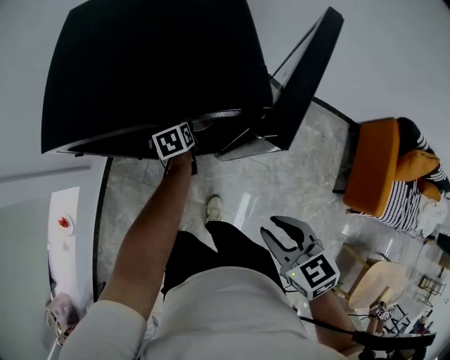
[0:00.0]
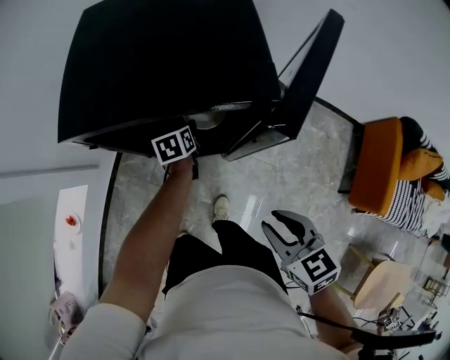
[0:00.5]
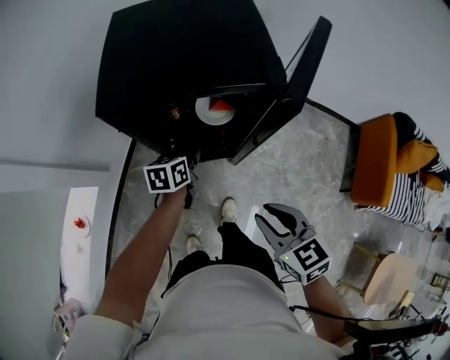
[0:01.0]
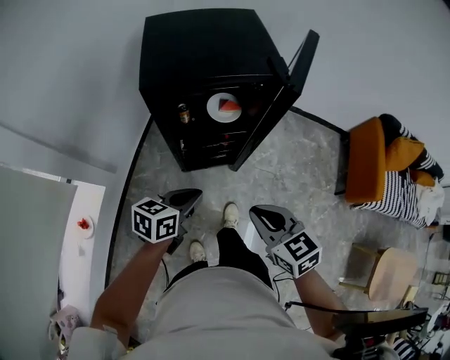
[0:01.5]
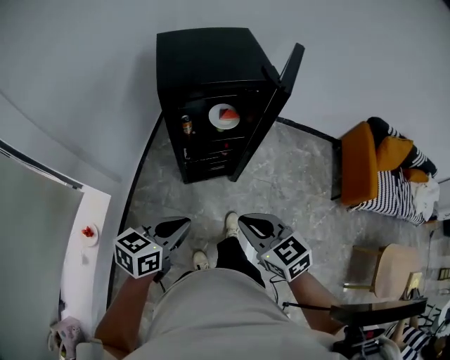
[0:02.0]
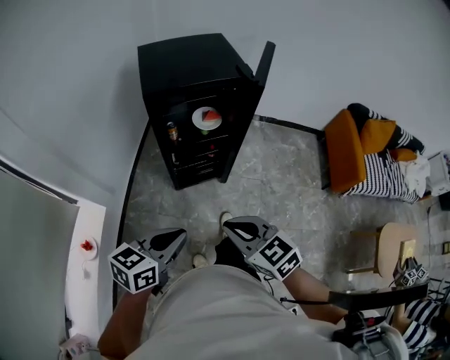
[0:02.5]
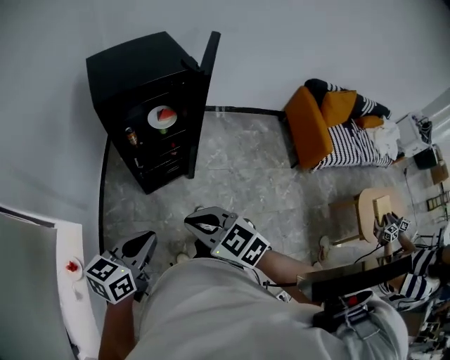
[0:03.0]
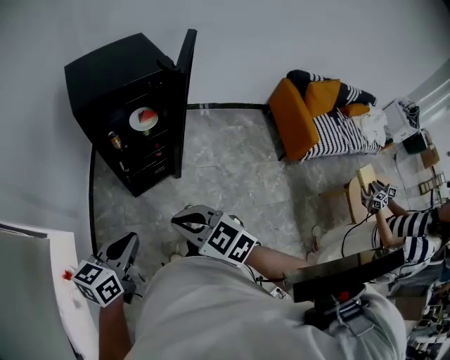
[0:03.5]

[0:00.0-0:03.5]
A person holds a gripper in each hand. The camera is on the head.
0:00.0 to 0:02.0: The right gripper moves about 30 cm, and closes, while the left gripper shifts by about 60 cm, changes its angle by about 50 degrees, and closes its fingers.
0:02.0 to 0:03.5: Both grippers travel together backward, approximately 5 cm.

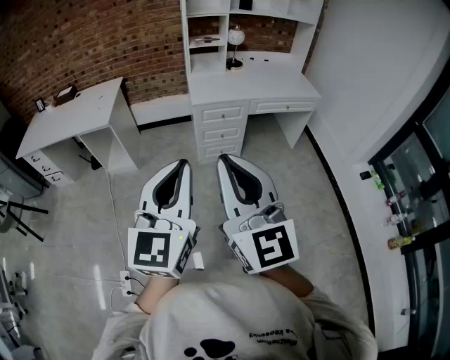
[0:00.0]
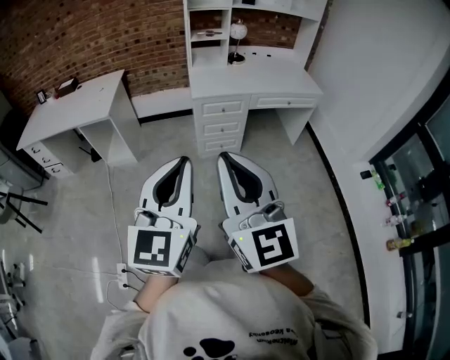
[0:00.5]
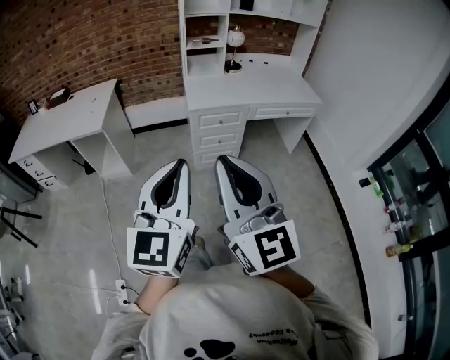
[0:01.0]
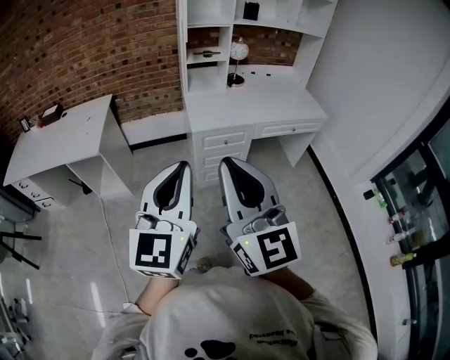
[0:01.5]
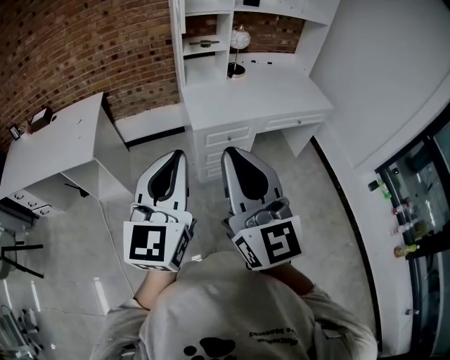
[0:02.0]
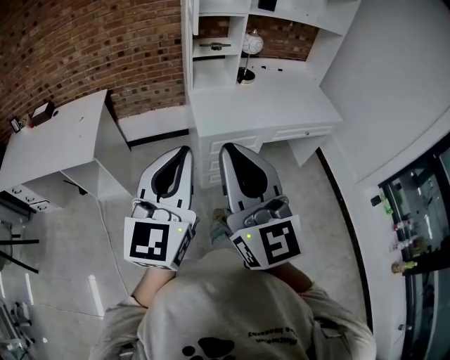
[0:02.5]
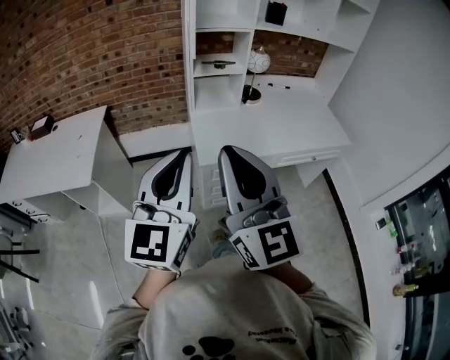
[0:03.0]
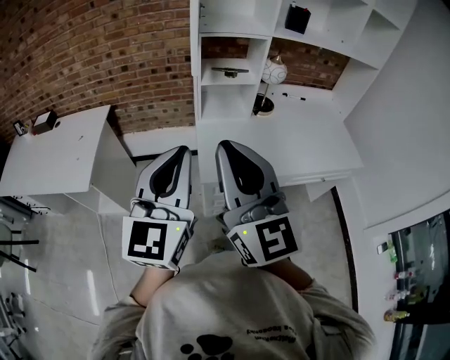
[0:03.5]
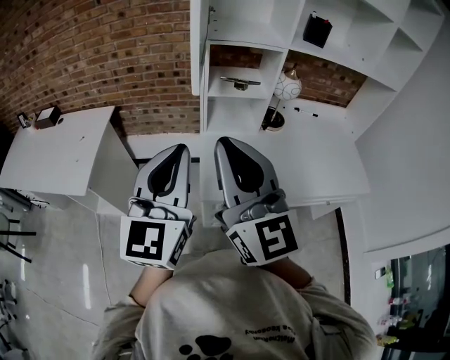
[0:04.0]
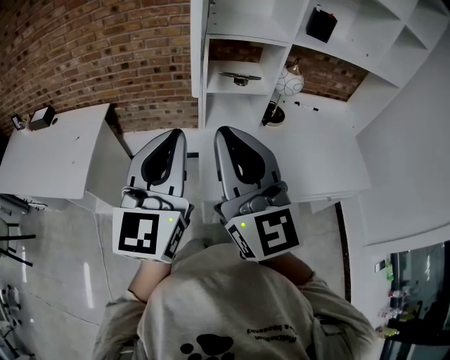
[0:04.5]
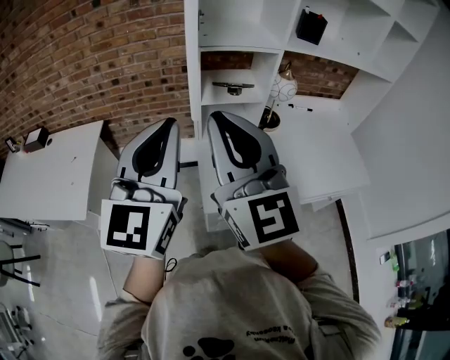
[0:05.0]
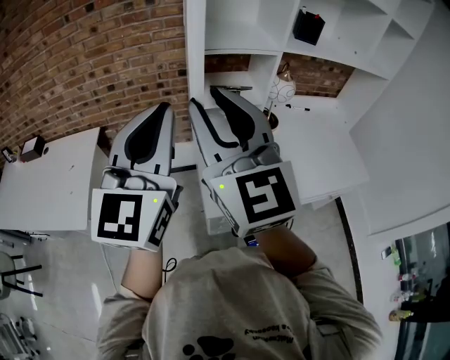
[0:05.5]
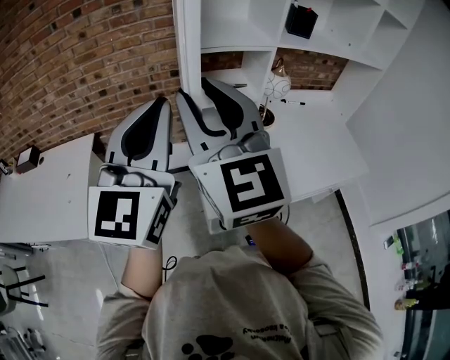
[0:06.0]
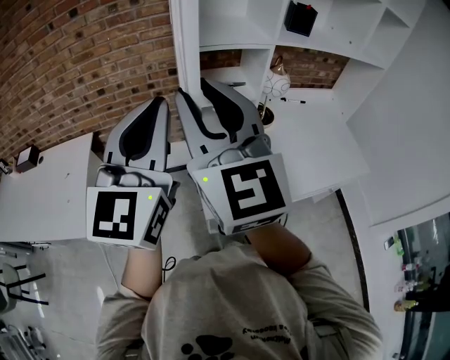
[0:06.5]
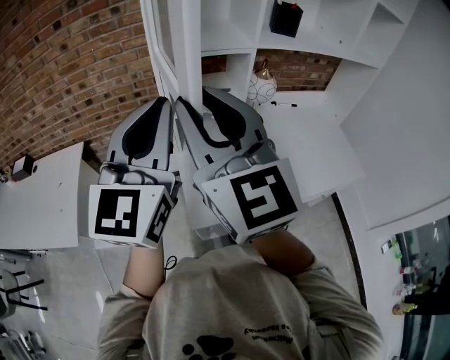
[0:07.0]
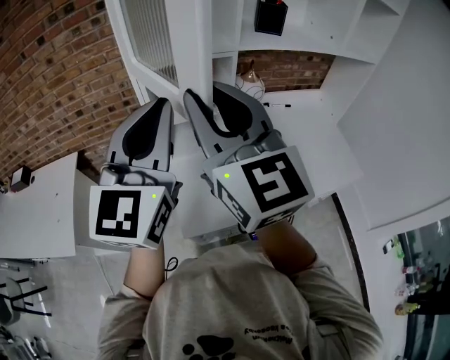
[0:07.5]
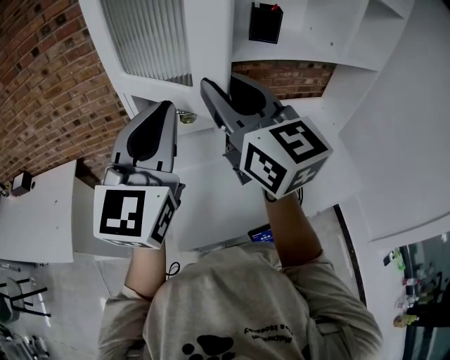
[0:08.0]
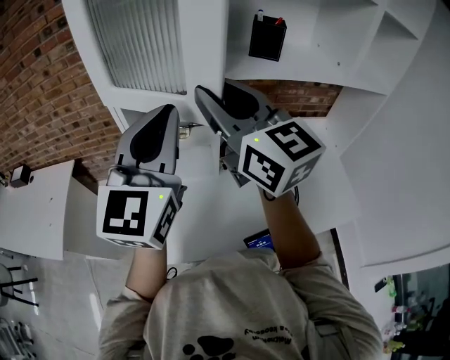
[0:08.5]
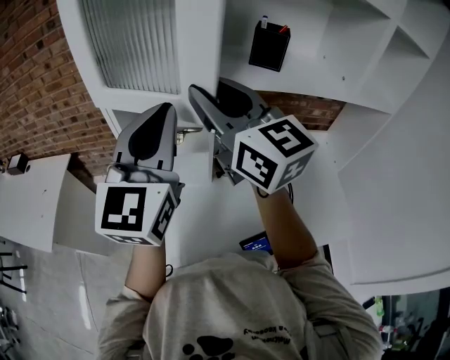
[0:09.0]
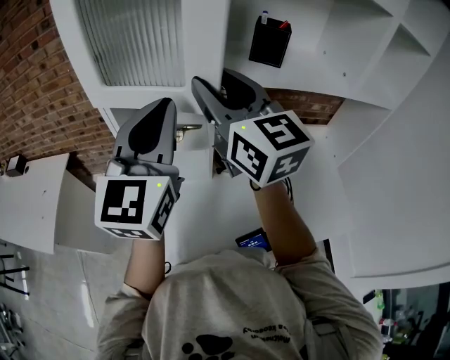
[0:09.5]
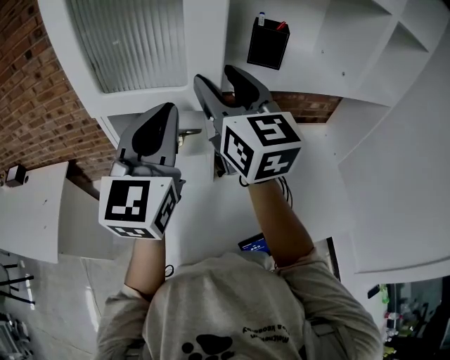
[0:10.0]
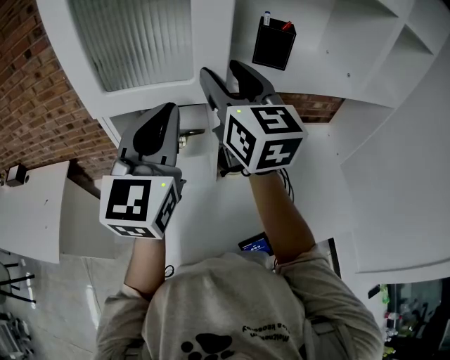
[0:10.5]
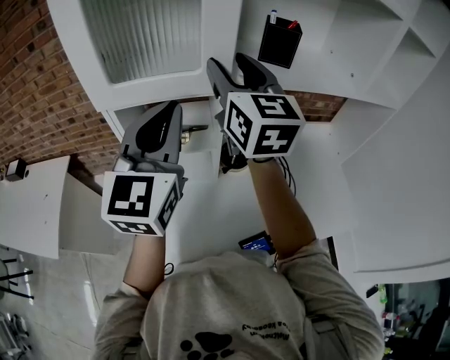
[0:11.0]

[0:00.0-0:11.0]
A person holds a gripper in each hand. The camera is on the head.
0:00.0 to 0:02.0: Both grippers travel together forward, roughly 35 cm.
0:02.0 to 0:03.5: The two grippers go about 30 cm forward.
0:03.5 to 0:05.5: The right gripper is displaced forward by roughly 20 cm, and opens its fingers. The left gripper travels forward and upward by about 20 cm.
0:05.5 to 0:07.5: Both grippers move to the right and forward, roughly 15 cm.
0:07.5 to 0:09.0: The left gripper is displaced to the right and forward by roughly 15 cm, while the right gripper travels forward and to the right by approximately 20 cm, and swivels roughly 20 degrees.
0:09.0 to 0:11.0: The left gripper changes place by about 5 cm. The right gripper goes approximately 10 cm forward, turns by approximately 20 degrees, and opens up.

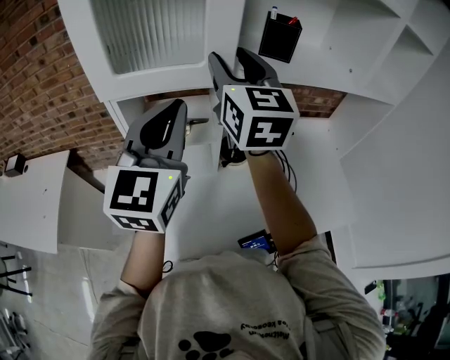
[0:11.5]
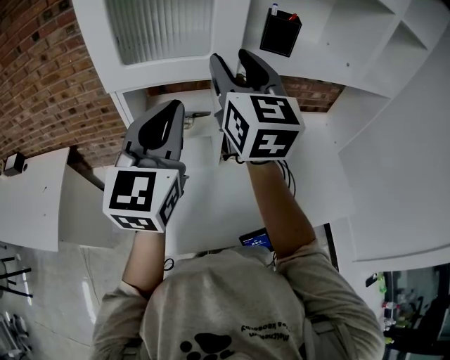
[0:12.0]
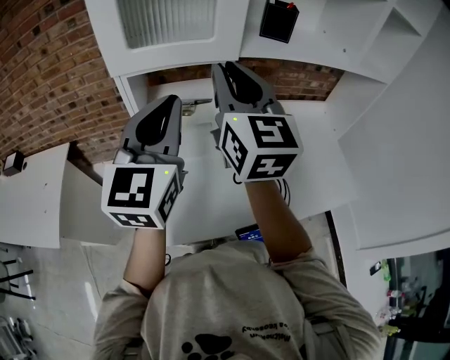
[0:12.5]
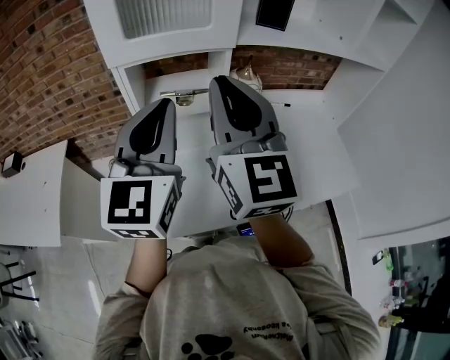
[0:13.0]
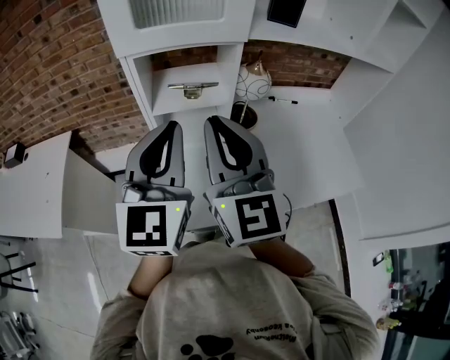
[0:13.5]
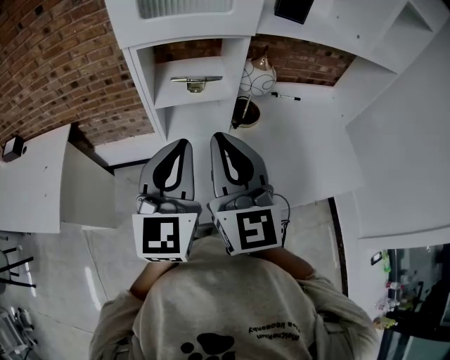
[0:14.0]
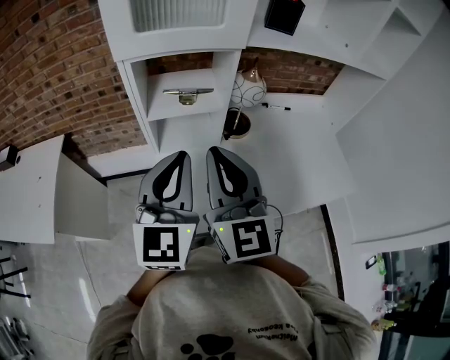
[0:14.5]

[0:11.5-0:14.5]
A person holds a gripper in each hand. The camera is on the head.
0:11.5 to 0:13.0: The right gripper goes about 20 cm backward, and closes. The left gripper travels backward by some 10 cm.
0:13.0 to 0:14.5: The right gripper is displaced downward and backward by about 10 cm. Meanwhile the left gripper shifts some 10 cm downward.

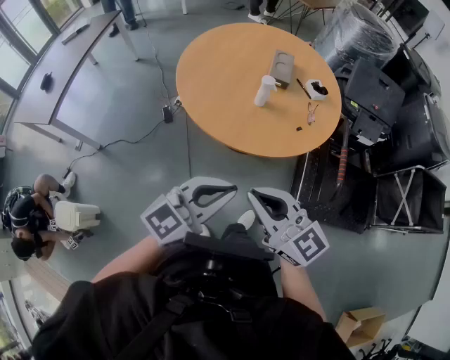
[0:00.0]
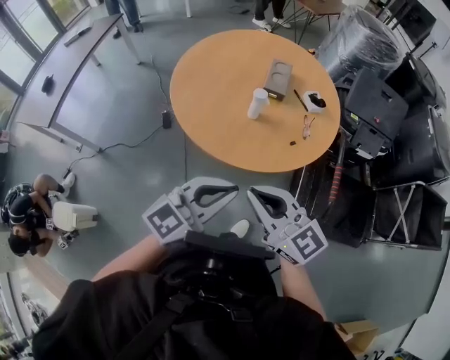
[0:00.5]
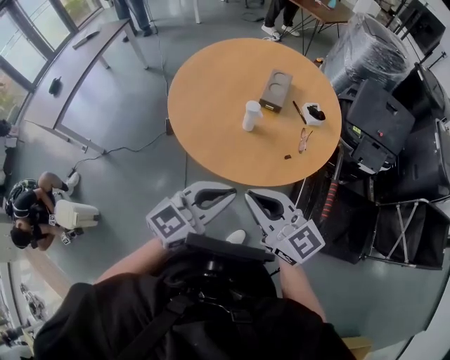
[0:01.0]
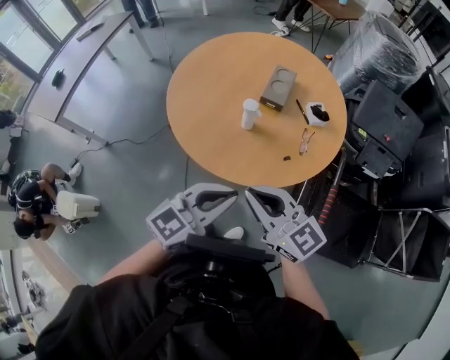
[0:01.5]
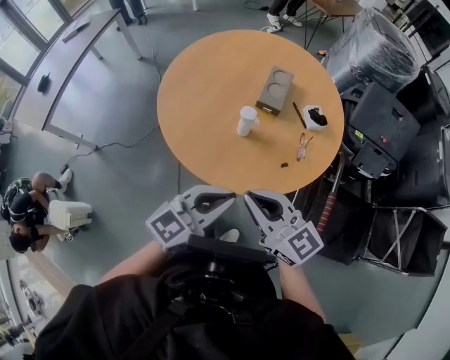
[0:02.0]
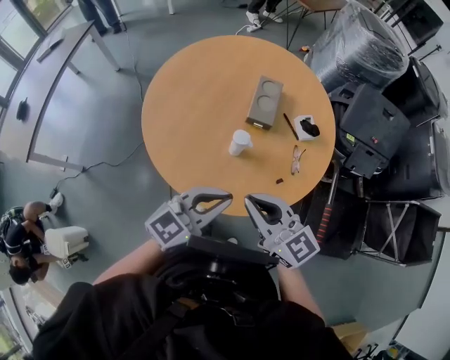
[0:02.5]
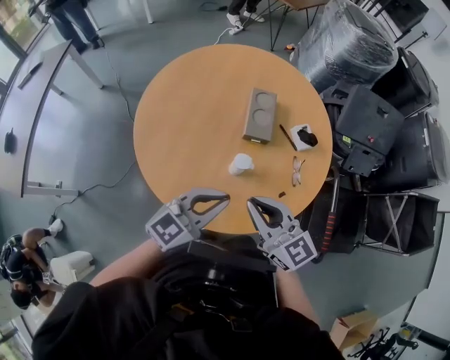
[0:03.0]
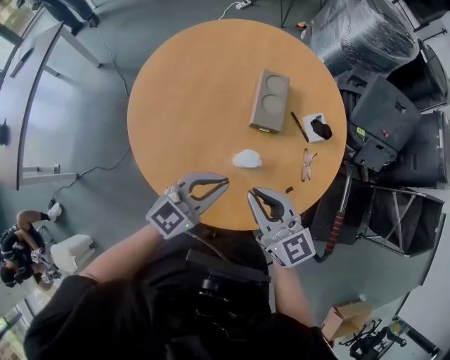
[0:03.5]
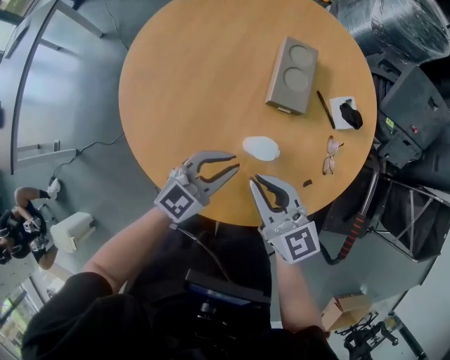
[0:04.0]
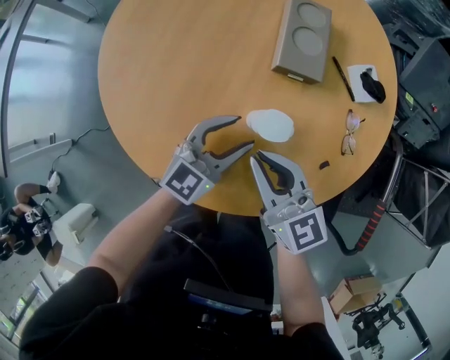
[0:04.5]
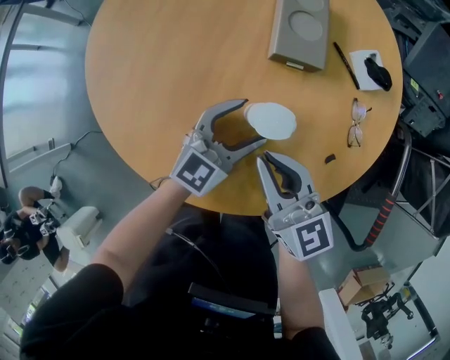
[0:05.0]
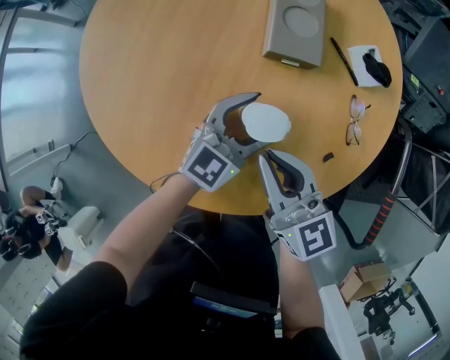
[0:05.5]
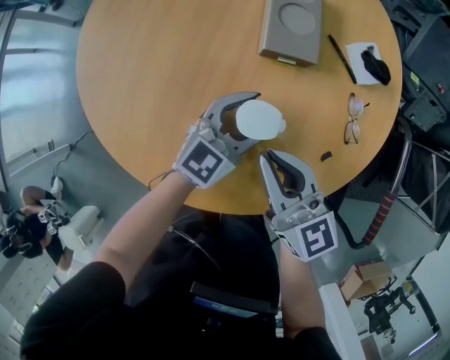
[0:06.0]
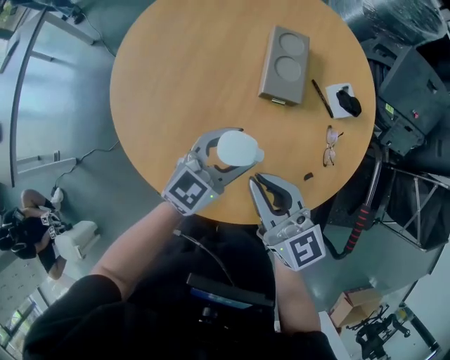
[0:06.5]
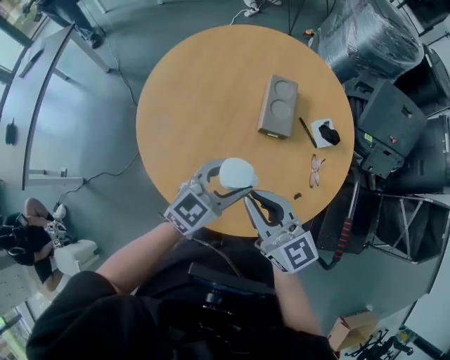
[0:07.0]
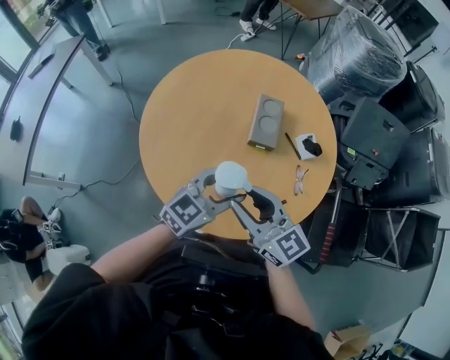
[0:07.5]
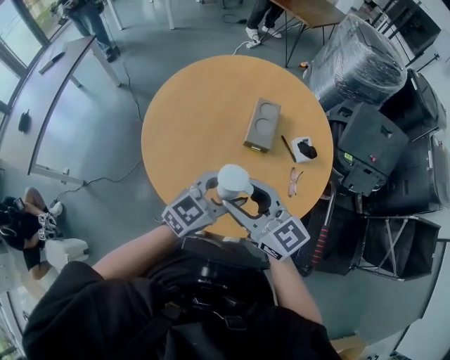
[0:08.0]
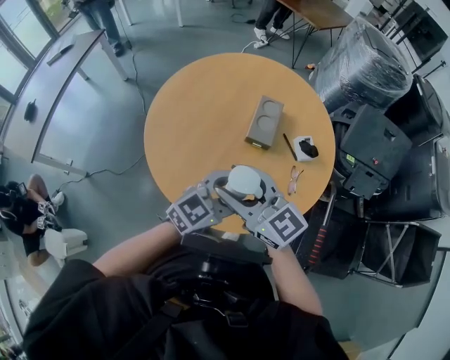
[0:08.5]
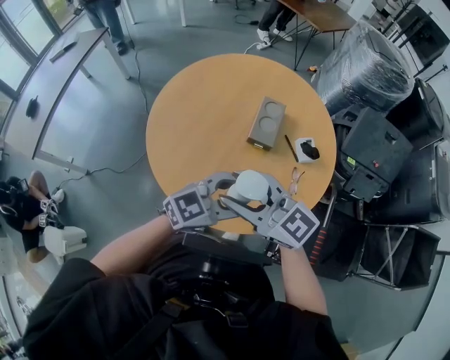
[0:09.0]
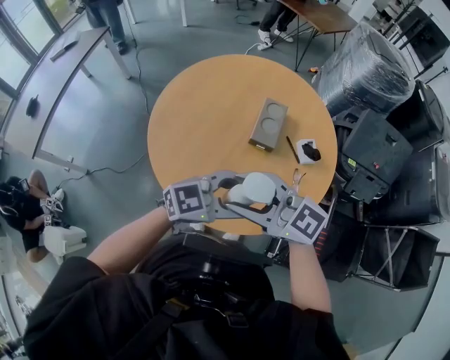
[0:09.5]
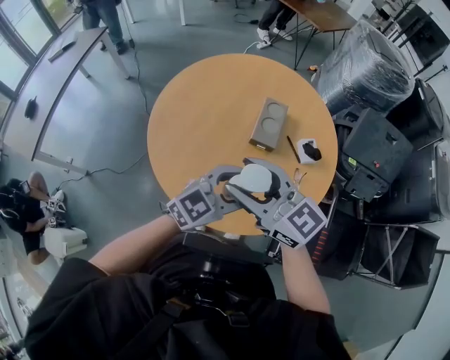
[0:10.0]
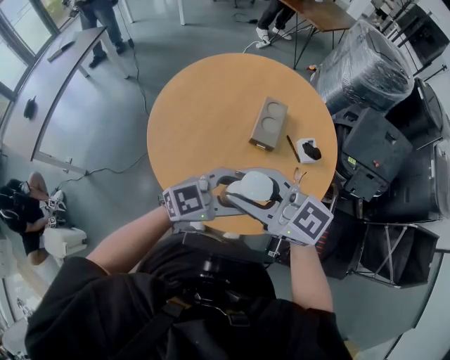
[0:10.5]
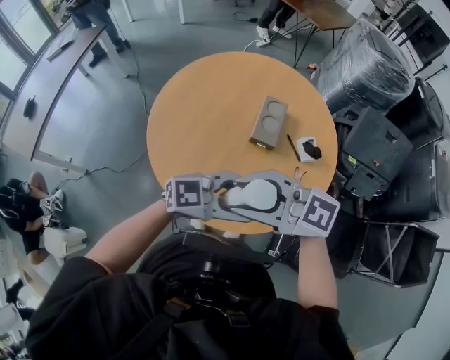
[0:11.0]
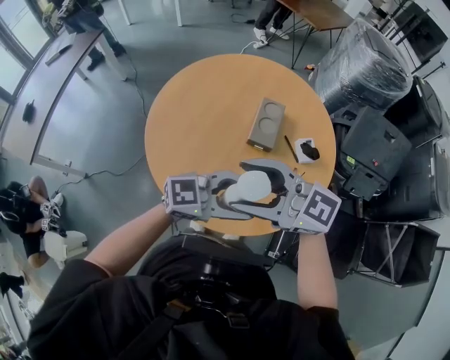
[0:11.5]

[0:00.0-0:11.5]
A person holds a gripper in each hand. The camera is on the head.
0:00.0 to 0:02.0: The two grippers go some 30 cm forward and to the right.
0:02.0 to 0:04.0: The grippers both shift forward and downward by roughly 40 cm.
0:04.0 to 0:06.0: The right gripper is displaced downward by about 10 cm. Meanwhile the left gripper travels downward, to the right and forward by about 15 cm, and opens its fingers.
0:06.0 to 0:07.5: Both grippers travel together upward, roughly 35 cm. The right gripper opens up.
0:07.5 to 0:09.5: The left gripper moves approximately 15 cm, and swivels about 20 degrees. Meanwhile the right gripper is displaced upward by approximately 10 cm, and rotates roughly 30 degrees.
